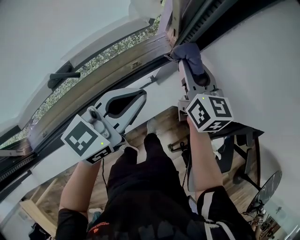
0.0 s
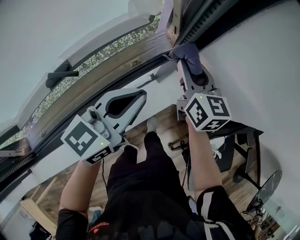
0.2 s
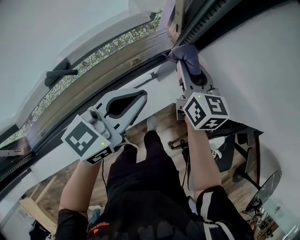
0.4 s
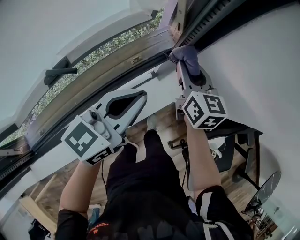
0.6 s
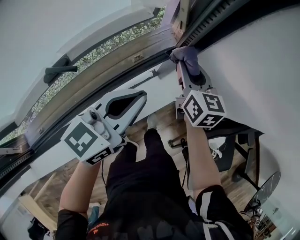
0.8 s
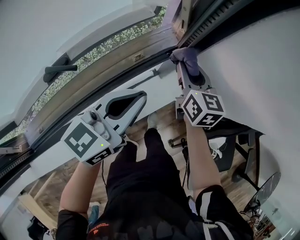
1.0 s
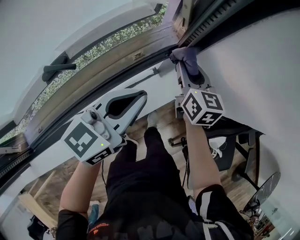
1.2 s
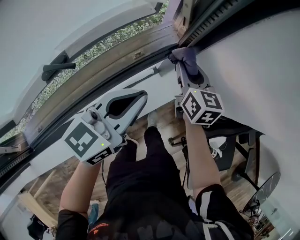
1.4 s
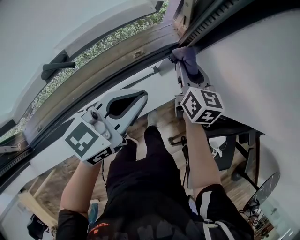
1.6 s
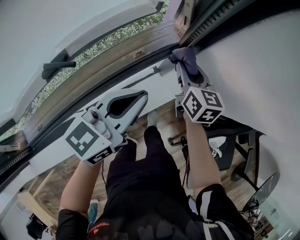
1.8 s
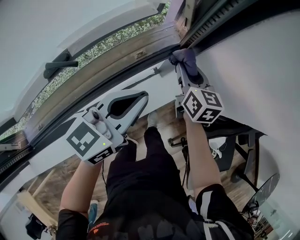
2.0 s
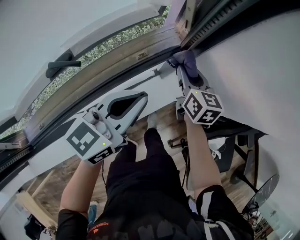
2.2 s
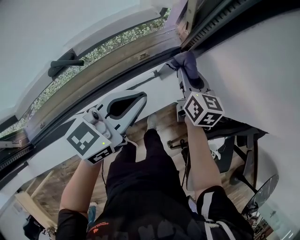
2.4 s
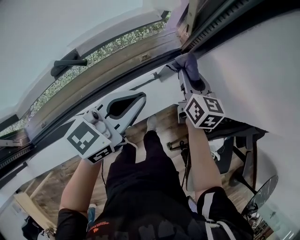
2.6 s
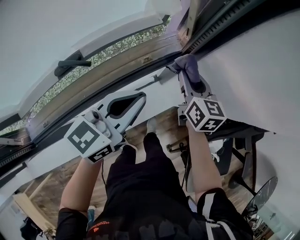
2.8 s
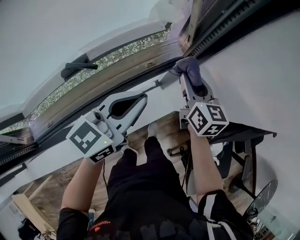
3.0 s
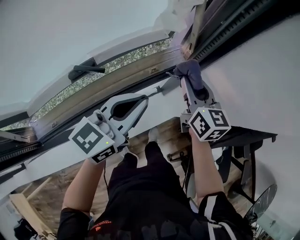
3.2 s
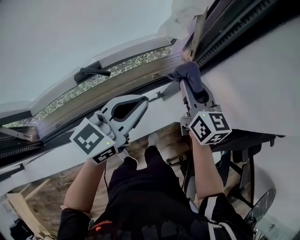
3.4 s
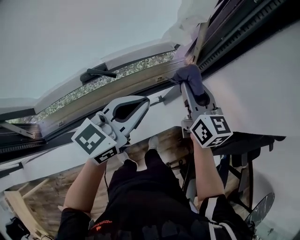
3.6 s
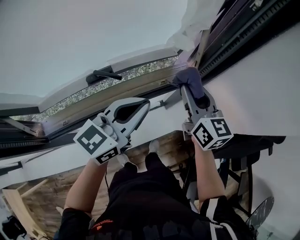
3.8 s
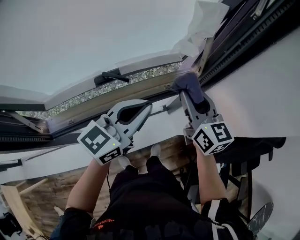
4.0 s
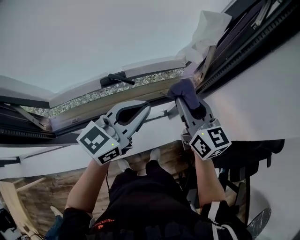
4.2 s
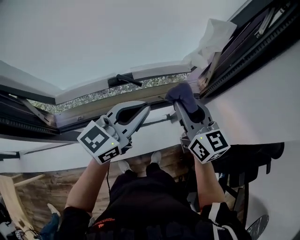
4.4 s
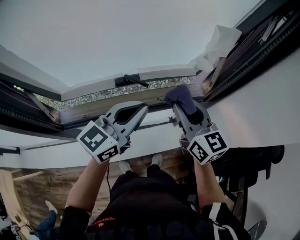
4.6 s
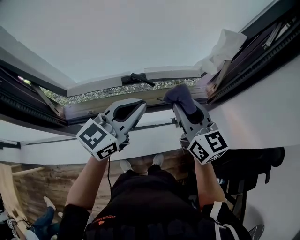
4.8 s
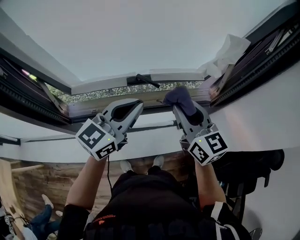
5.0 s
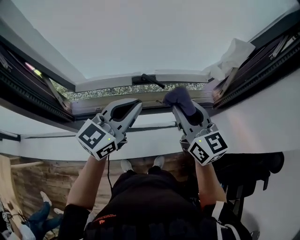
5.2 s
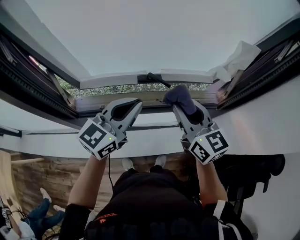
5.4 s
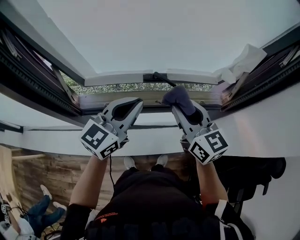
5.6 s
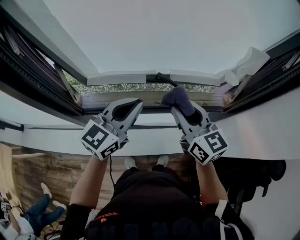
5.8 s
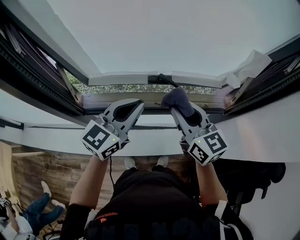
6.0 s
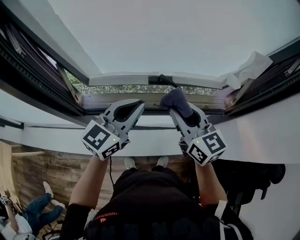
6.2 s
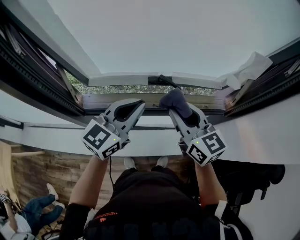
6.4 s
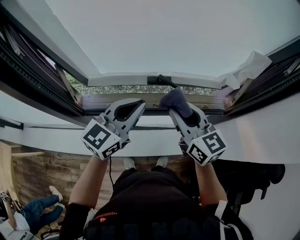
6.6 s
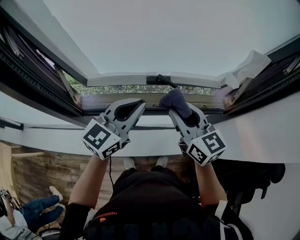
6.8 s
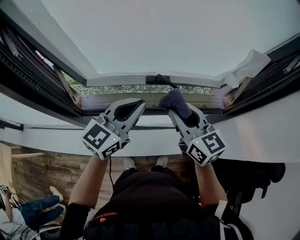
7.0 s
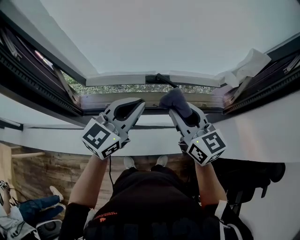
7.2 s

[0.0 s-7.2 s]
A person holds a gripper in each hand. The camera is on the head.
0.0 to 1.4 s: The right gripper shifts some 10 cm downward.
1.4 to 2.8 s: The right gripper ends up roughly 5 cm from where it was.
2.8 to 4.4 s: The left gripper moves upward, to the left and backward, about 20 cm, while the right gripper goes some 25 cm upward, to the left and backward, and rotates some 30 degrees.
4.4 to 5.8 s: The grippers both shift to the left by about 15 cm. The left gripper swivels some 20 degrees.
5.8 to 7.2 s: The grippers stay close to where they were, moving slightly.

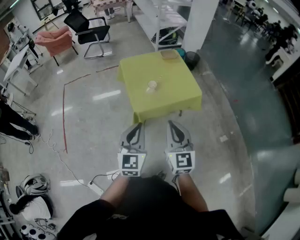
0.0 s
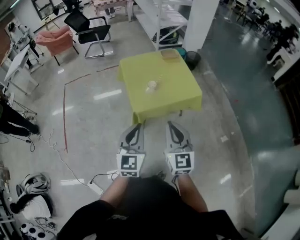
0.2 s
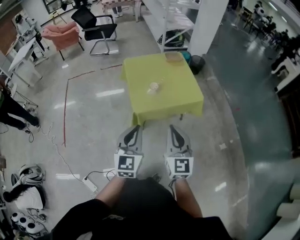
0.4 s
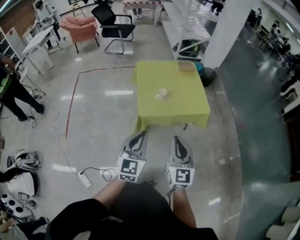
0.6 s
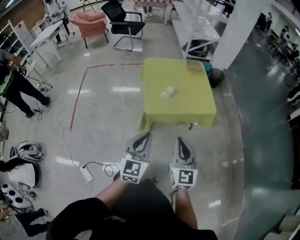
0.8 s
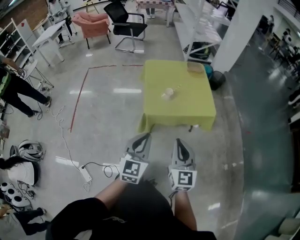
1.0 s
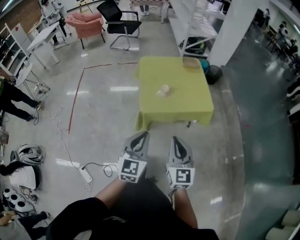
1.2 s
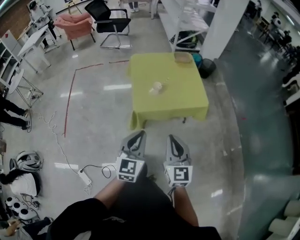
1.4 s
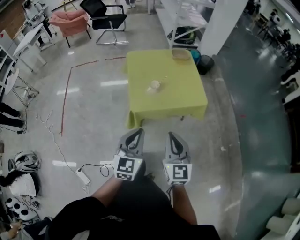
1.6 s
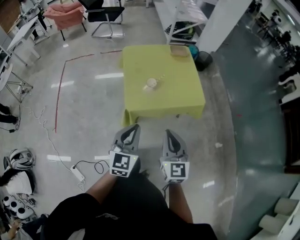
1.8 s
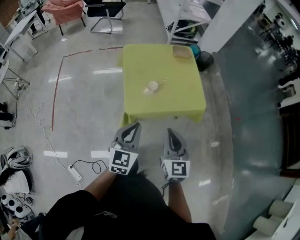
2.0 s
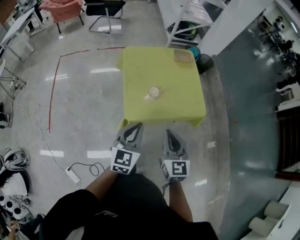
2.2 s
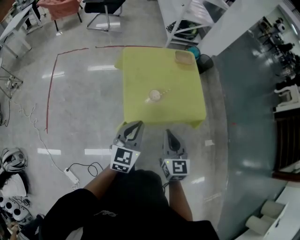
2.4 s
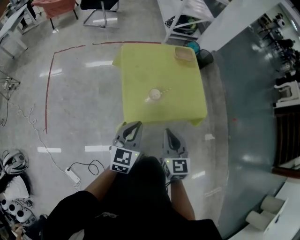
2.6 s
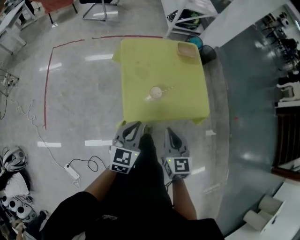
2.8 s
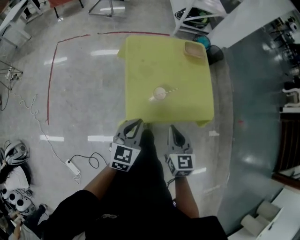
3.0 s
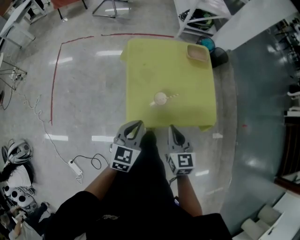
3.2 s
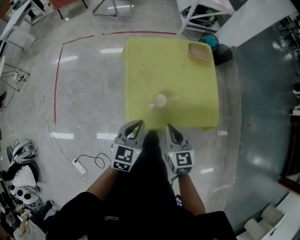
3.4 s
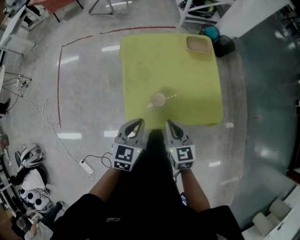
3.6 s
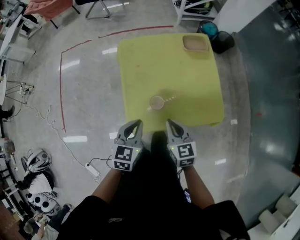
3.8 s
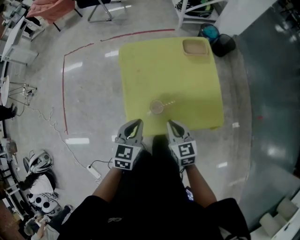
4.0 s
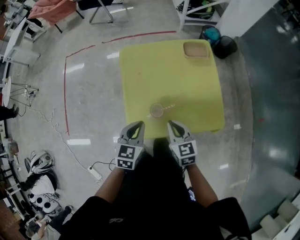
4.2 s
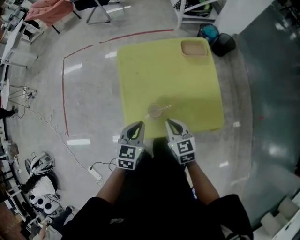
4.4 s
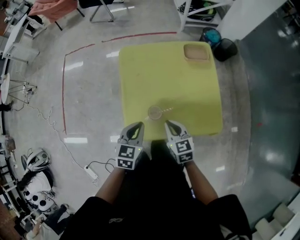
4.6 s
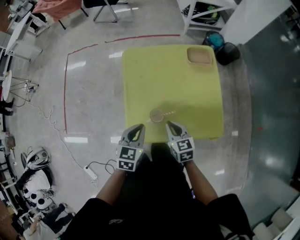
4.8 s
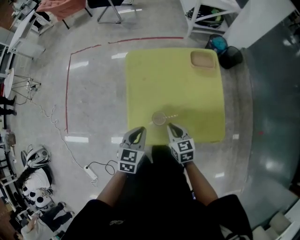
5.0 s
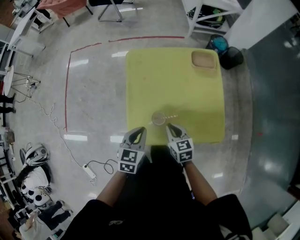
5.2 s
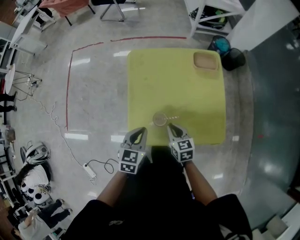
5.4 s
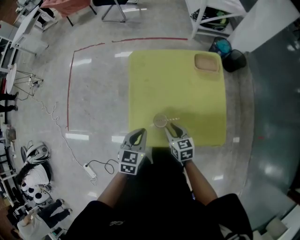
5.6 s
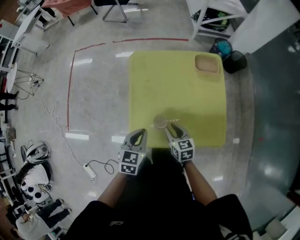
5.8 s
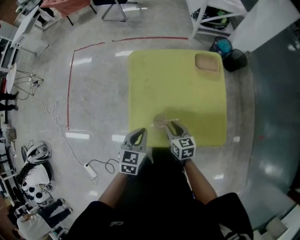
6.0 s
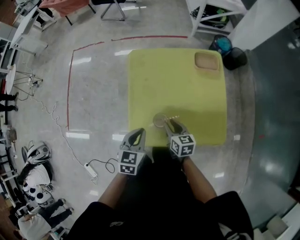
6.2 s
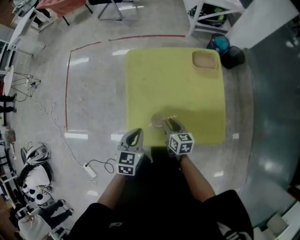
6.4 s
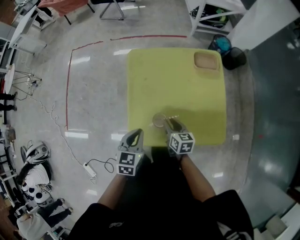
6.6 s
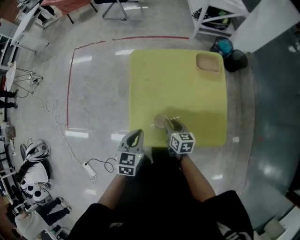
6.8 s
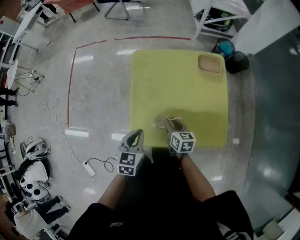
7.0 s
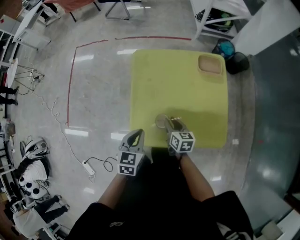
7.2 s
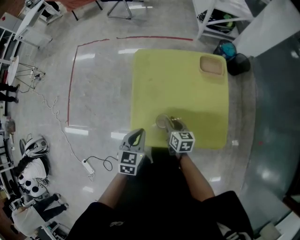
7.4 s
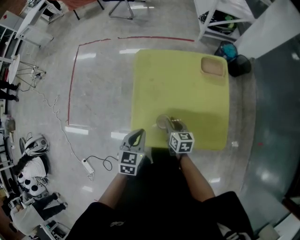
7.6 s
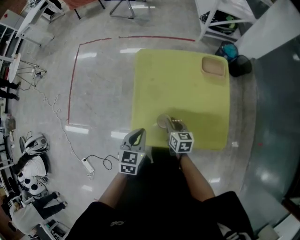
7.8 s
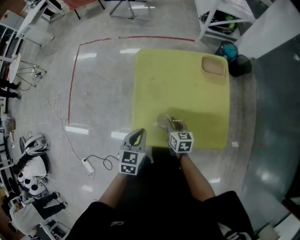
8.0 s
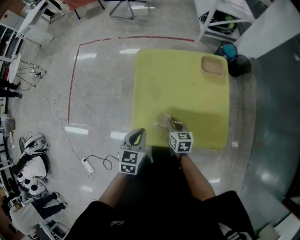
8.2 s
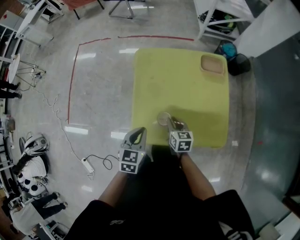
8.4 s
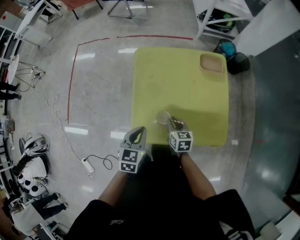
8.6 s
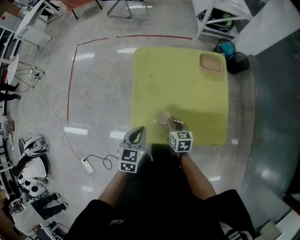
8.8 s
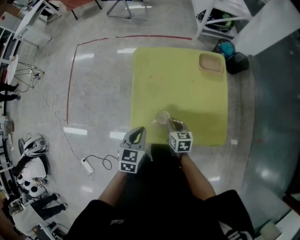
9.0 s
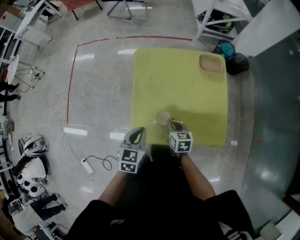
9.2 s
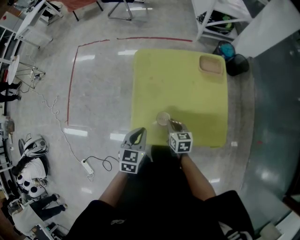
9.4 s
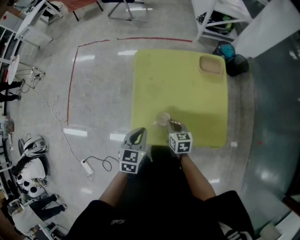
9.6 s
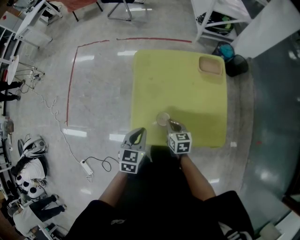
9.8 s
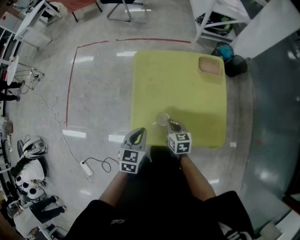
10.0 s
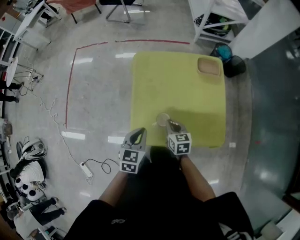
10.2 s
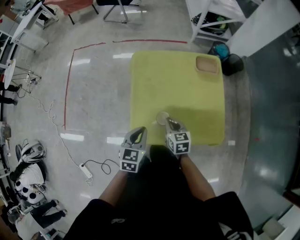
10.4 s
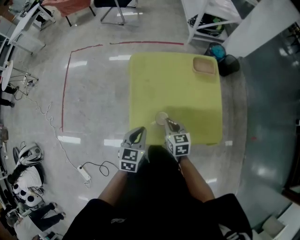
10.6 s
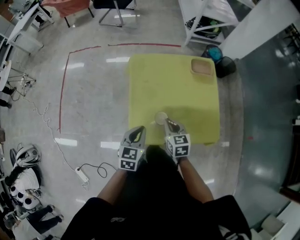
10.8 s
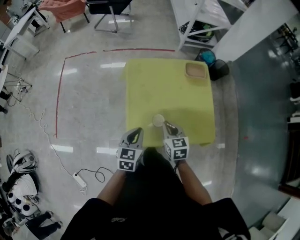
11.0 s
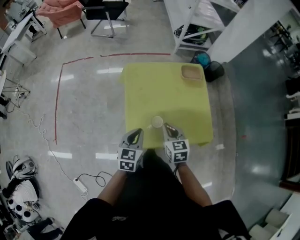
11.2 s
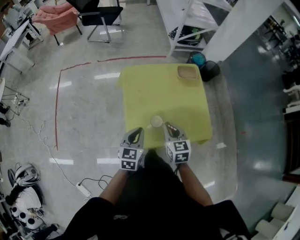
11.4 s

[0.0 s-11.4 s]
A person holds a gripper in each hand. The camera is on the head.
0.0 to 1.4 s: The left gripper travels to the right and downward by some 10 cm. Meanwhile the right gripper travels downward and to the right by about 10 cm.
1.4 to 2.8 s: The grippers both shift forward by roughly 25 cm.
2.8 to 4.2 s: The two grippers go roughly 15 cm forward and downward.
4.2 to 5.6 s: The right gripper heads downward, covering about 10 cm, and opens up.
5.6 to 8.6 s: The grippers move only a little.
8.6 to 10.0 s: Both grippers stay put.
10.0 to 11.4 s: The left gripper goes approximately 5 cm upward, while the right gripper moves upward, roughly 15 cm.

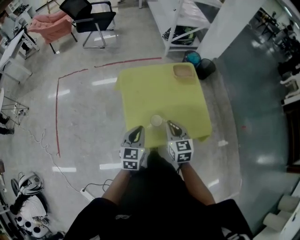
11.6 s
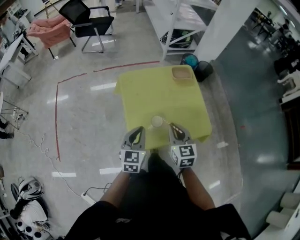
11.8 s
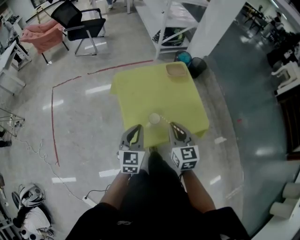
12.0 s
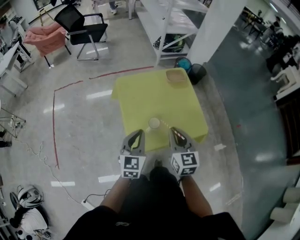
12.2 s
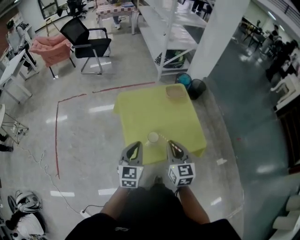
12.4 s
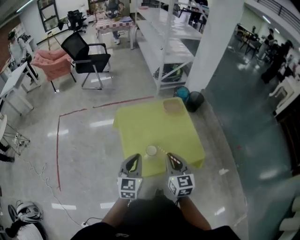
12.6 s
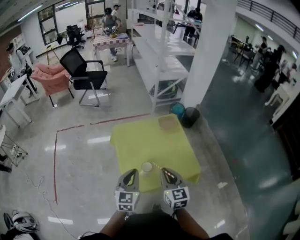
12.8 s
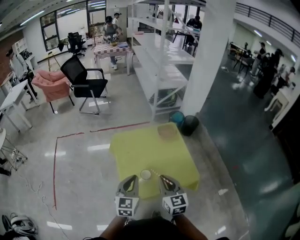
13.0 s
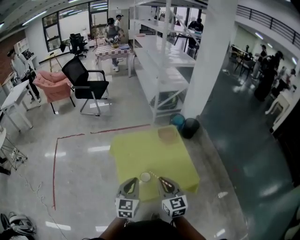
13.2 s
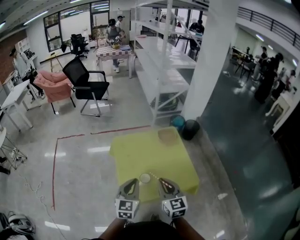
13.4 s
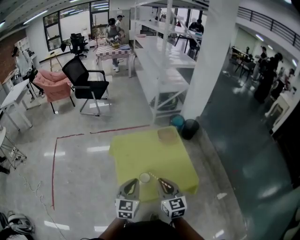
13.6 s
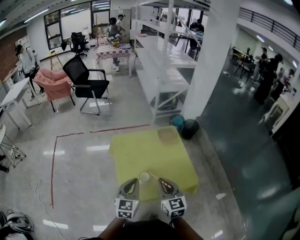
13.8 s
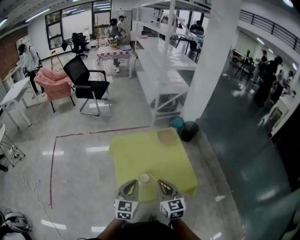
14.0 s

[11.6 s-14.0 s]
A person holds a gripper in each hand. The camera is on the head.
11.6 to 12.8 s: The left gripper heads upward, covering approximately 10 cm. The right gripper travels upward and backward by about 10 cm.
12.8 to 14.0 s: There are only small adjustments of the grippers.

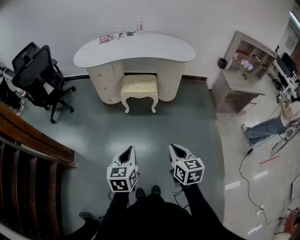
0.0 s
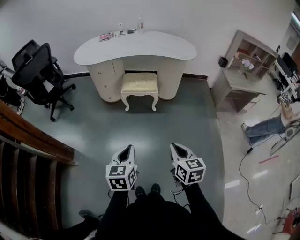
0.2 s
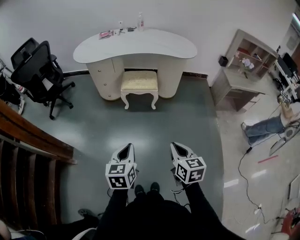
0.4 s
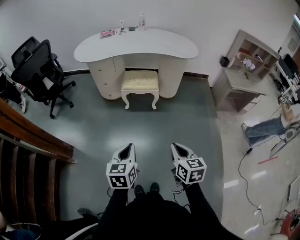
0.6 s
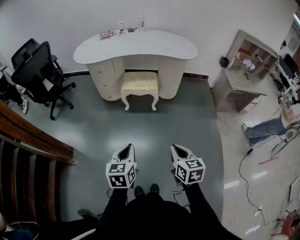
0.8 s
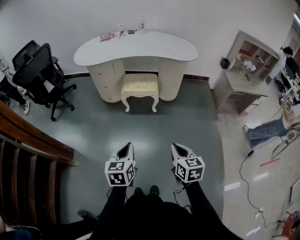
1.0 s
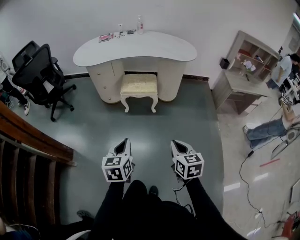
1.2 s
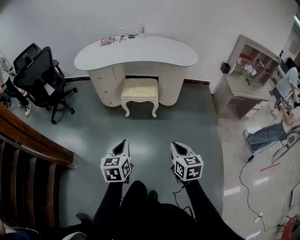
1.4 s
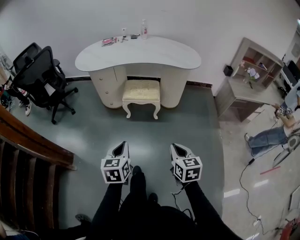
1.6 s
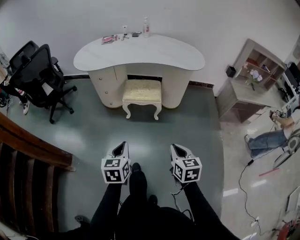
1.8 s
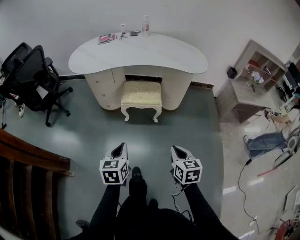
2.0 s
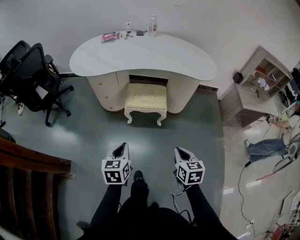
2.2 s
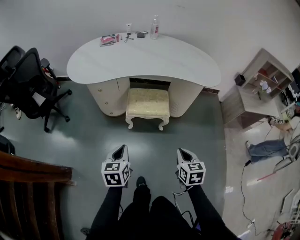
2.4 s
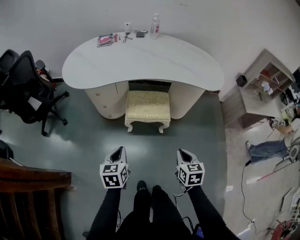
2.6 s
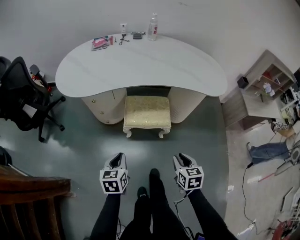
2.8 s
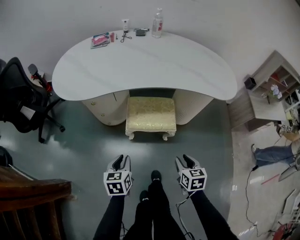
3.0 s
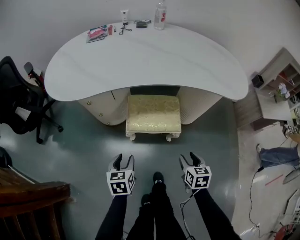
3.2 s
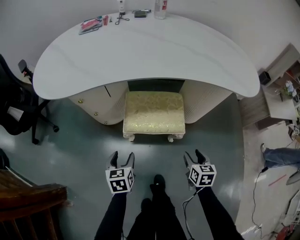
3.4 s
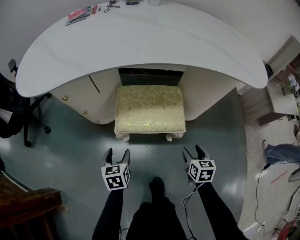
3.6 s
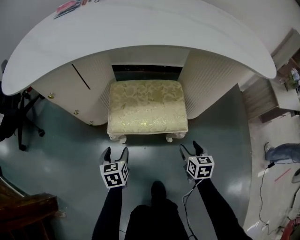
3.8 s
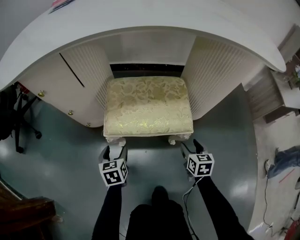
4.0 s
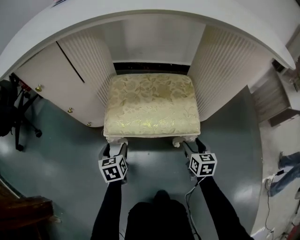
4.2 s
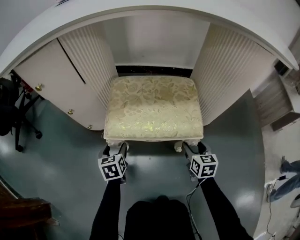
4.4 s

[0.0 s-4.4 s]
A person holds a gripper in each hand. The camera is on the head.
0.0 to 1.4 s: The two grippers go roughly 5 cm forward.
1.4 to 3.0 s: The left gripper goes roughly 40 cm forward and downward, while the right gripper heads forward, covering some 40 cm, and opens.
3.0 to 4.4 s: Both grippers travel together downward and forward, about 50 cm. The left gripper opens its fingers, while the right gripper opens.
